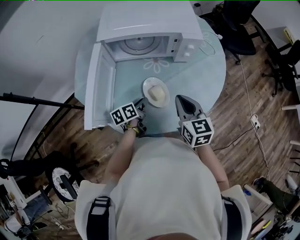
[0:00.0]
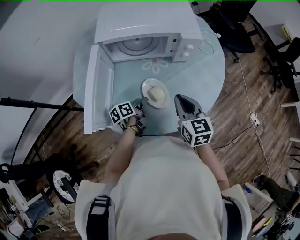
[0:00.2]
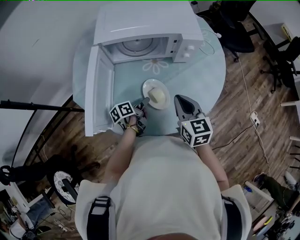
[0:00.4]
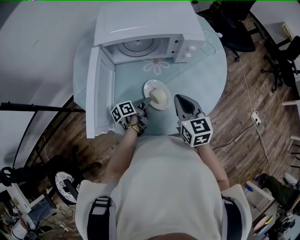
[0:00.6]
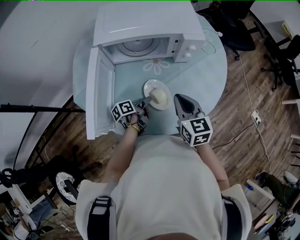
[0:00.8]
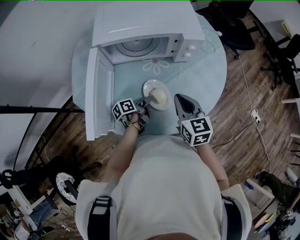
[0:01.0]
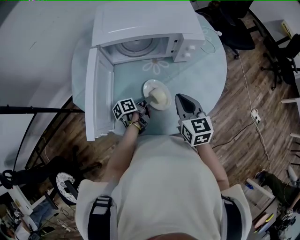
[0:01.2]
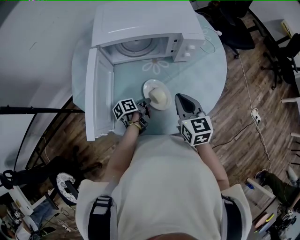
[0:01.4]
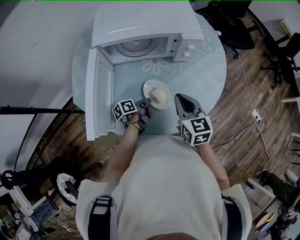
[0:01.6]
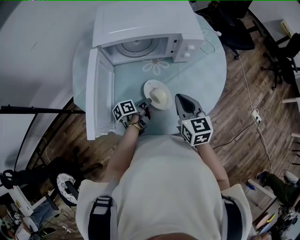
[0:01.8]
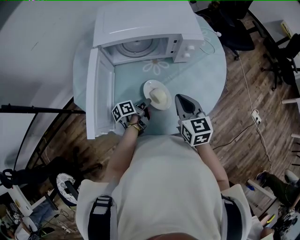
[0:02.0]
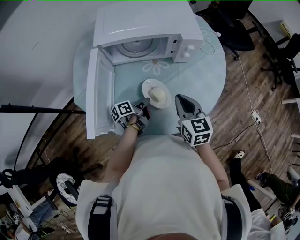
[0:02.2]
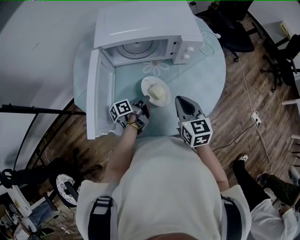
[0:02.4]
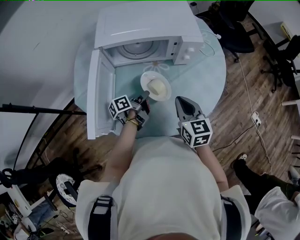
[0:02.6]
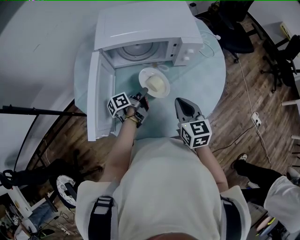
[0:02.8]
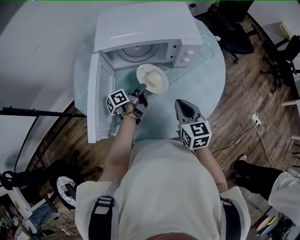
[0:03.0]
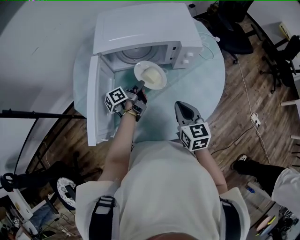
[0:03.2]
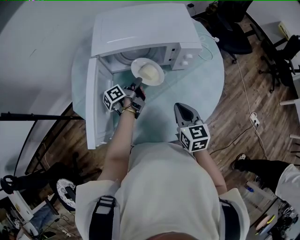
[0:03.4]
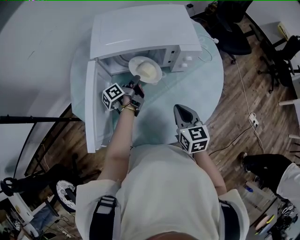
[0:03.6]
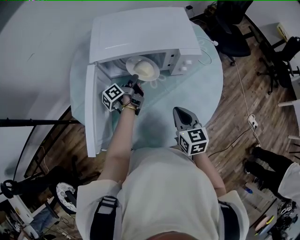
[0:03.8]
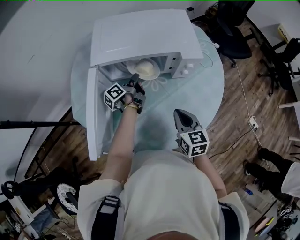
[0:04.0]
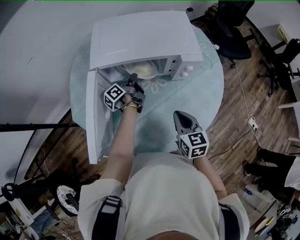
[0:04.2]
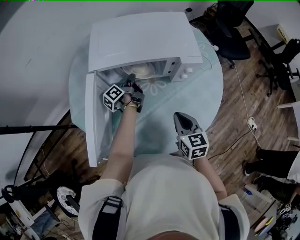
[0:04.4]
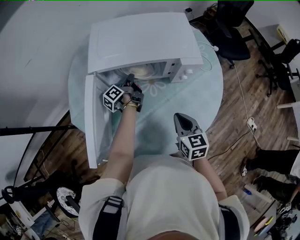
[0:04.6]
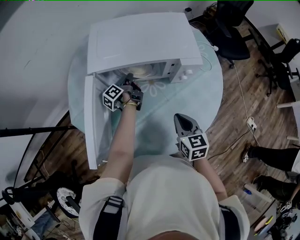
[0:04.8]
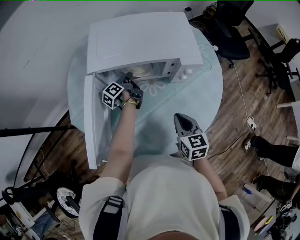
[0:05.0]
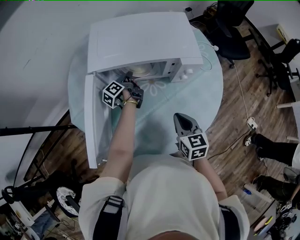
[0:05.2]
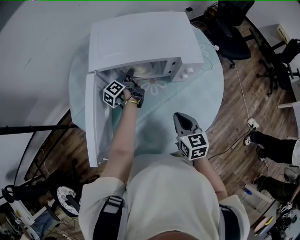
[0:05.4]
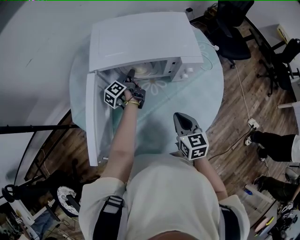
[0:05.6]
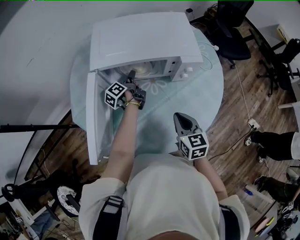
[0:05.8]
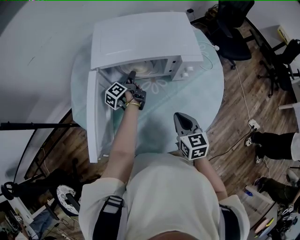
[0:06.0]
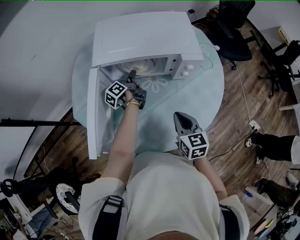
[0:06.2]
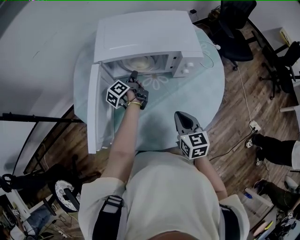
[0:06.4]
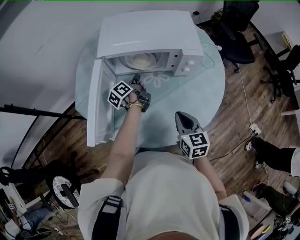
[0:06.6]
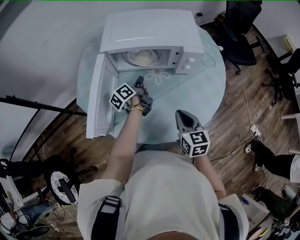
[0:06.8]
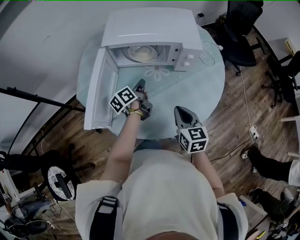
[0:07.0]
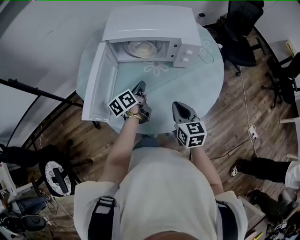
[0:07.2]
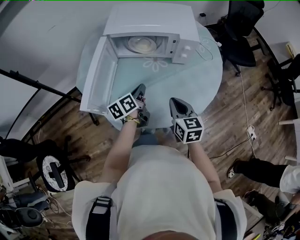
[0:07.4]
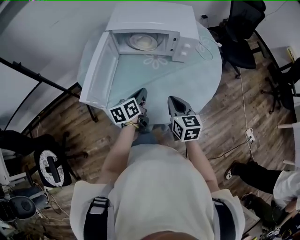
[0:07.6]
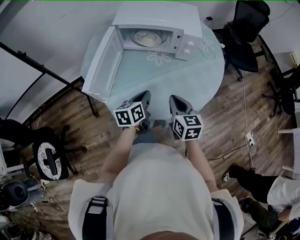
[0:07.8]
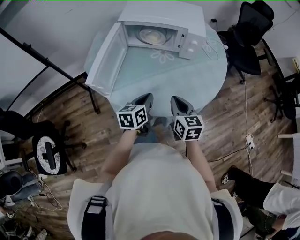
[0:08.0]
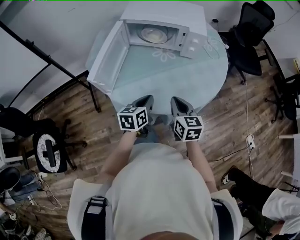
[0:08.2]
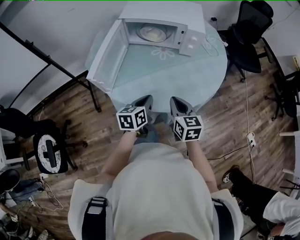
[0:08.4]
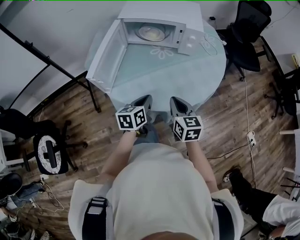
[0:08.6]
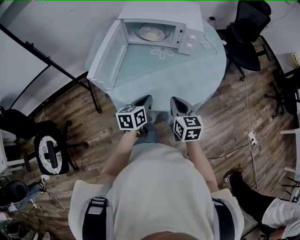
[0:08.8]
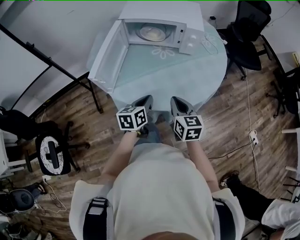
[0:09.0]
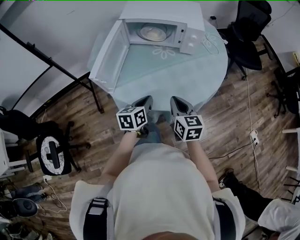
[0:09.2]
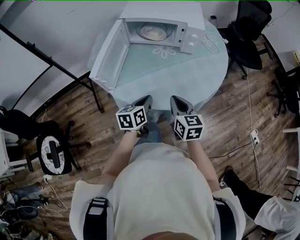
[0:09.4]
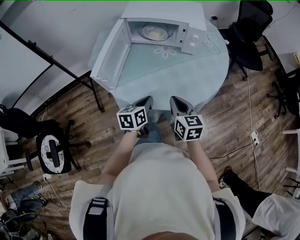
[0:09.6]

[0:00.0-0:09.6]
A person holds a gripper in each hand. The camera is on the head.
0:00.0 to 0:01.6: The left gripper changes its angle by roughly 20 degrees, and opens, then closes once more.
0:01.6 to 0:03.2: The left gripper goes roughly 15 cm forward and upward.
0:03.2 to 0:04.8: The left gripper shifts about 15 cm forward.
0:04.8 to 0:06.4: The left gripper ends up some 5 cm from where it was.
0:06.4 to 0:08.0: The left gripper goes some 35 cm backward, rotates around the line of its fingers by some 50 degrees, clockwise from behind, and closes. The right gripper heads backward, covering about 10 cm.
0:08.0 to 0:09.6: The left gripper changes place by roughly 5 cm.

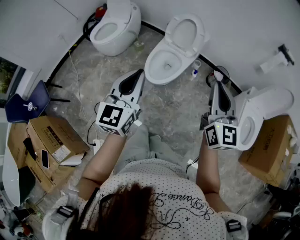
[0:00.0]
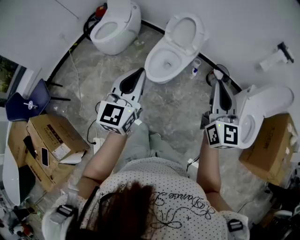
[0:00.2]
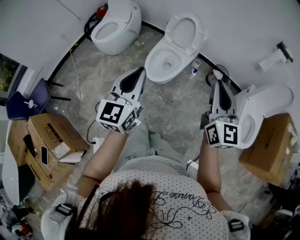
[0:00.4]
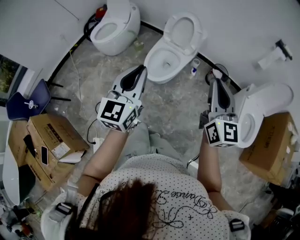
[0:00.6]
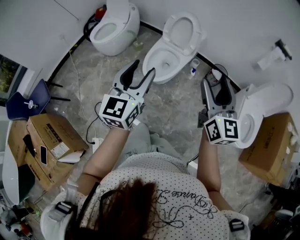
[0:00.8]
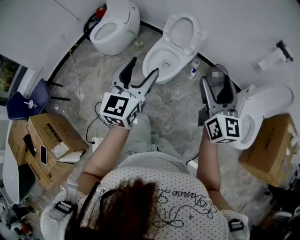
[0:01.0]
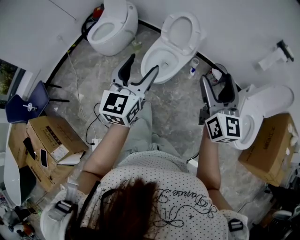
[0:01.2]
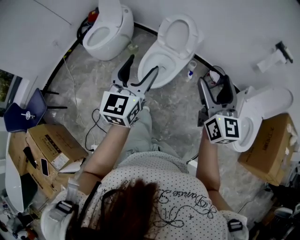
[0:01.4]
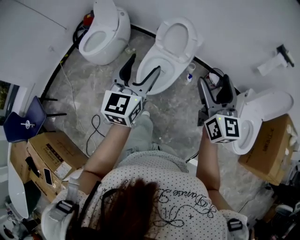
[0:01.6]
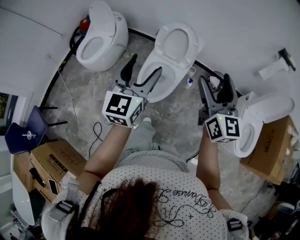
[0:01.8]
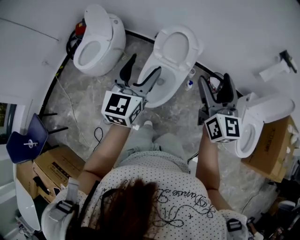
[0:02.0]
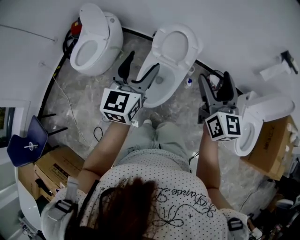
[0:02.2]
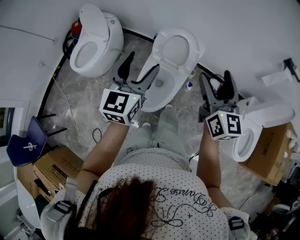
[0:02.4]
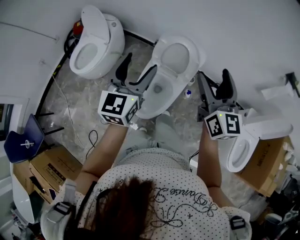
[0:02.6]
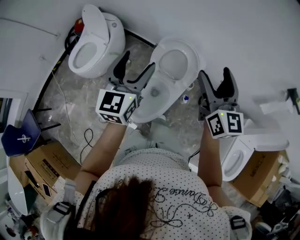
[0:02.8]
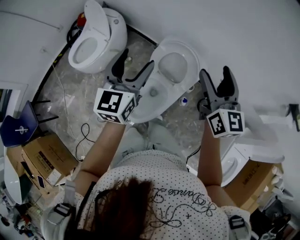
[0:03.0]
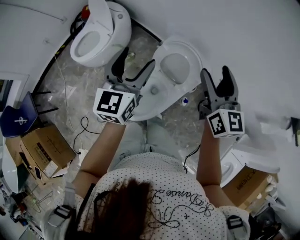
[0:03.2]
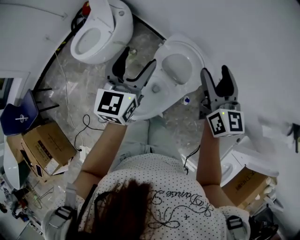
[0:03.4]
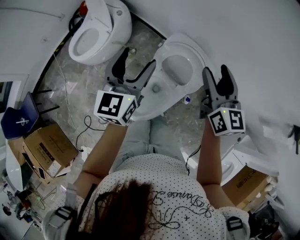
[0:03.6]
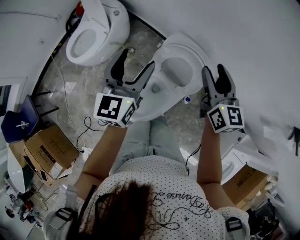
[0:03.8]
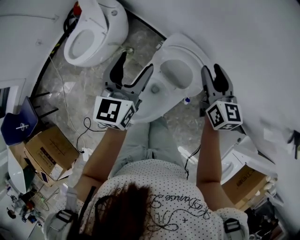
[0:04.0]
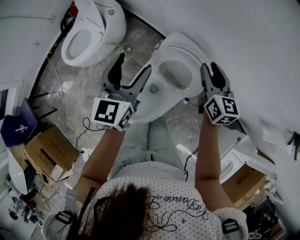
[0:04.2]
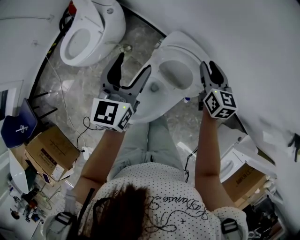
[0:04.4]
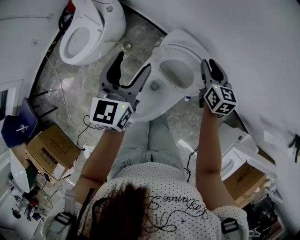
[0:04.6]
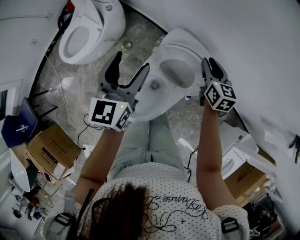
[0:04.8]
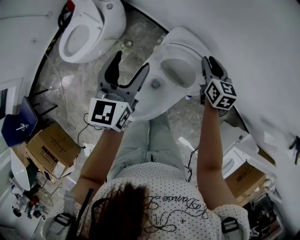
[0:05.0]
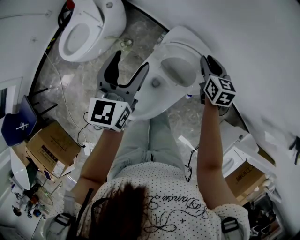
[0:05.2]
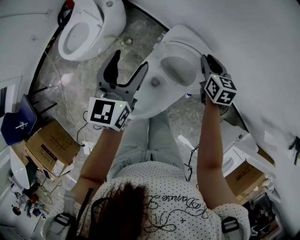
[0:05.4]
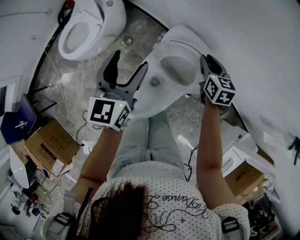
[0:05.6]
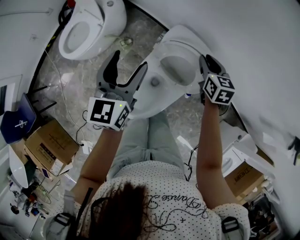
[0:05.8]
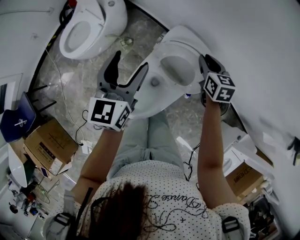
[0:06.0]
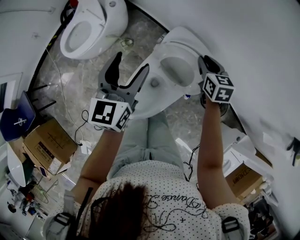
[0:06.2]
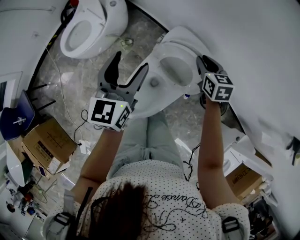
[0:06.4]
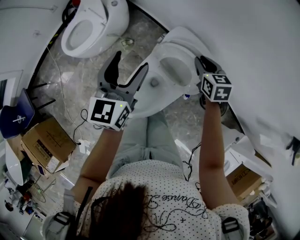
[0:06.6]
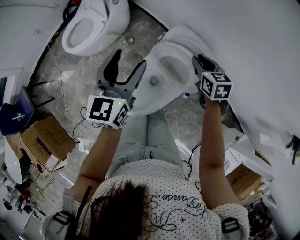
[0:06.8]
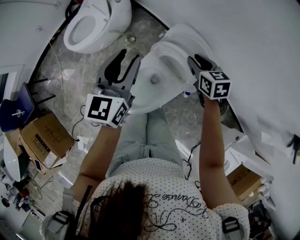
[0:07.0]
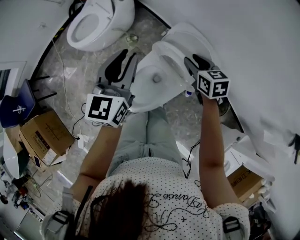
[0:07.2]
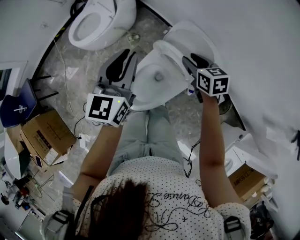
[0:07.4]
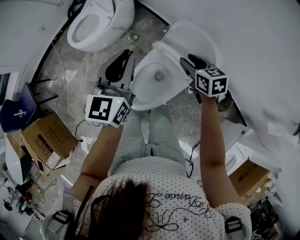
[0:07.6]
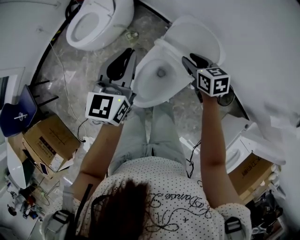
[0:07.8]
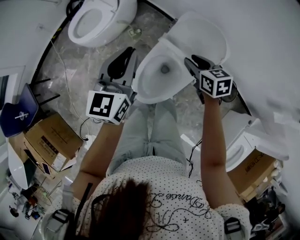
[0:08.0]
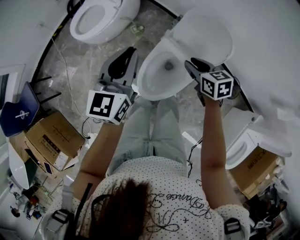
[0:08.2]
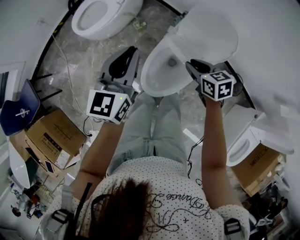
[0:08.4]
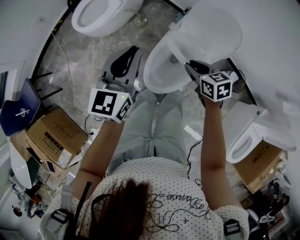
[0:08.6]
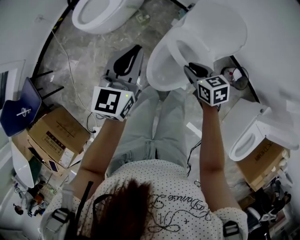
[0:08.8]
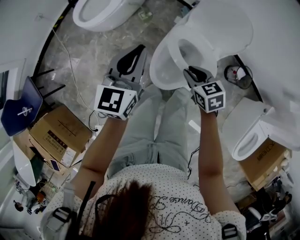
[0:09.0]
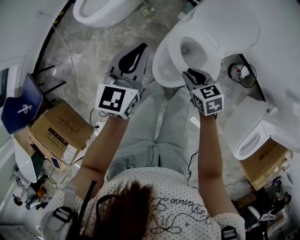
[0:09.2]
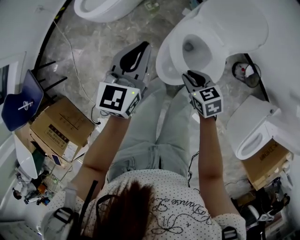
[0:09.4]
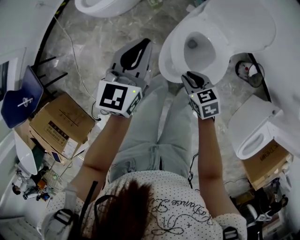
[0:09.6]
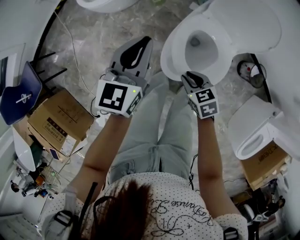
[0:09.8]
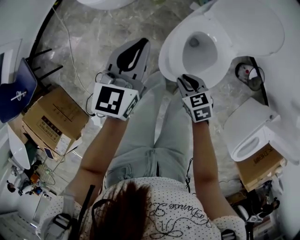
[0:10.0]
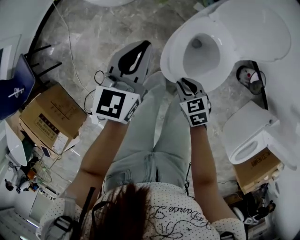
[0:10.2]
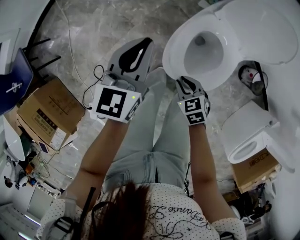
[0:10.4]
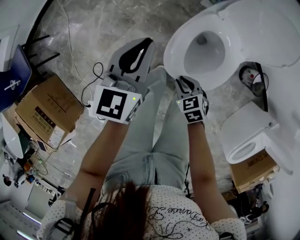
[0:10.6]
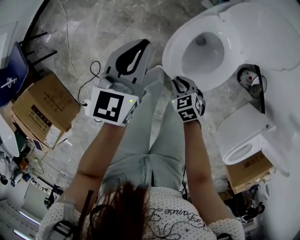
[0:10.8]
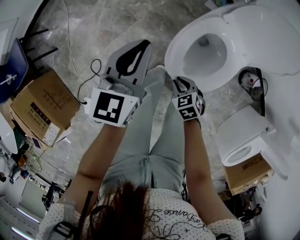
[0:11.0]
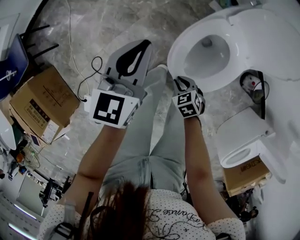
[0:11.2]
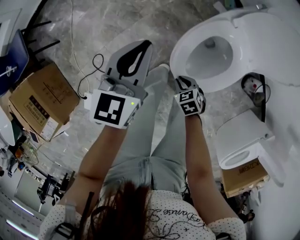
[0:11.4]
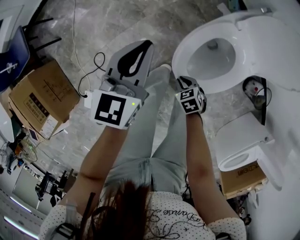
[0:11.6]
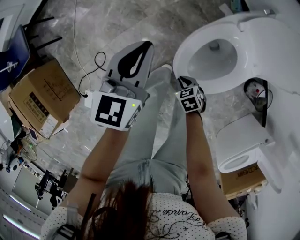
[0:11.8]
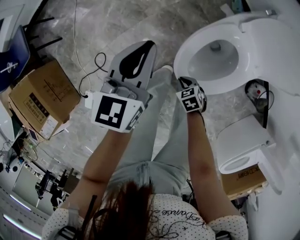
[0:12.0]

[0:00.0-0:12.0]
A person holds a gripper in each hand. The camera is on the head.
0:00.0 to 0:01.6: Both grippers travel together forward, about 15 cm. The right gripper opens. The left gripper opens up.
0:01.6 to 0:03.0: The grippers both shift forward by roughly 35 cm.
0:03.0 to 0:04.4: The left gripper goes roughly 15 cm forward and downward. Meanwhile the right gripper shifts approximately 30 cm downward and forward, rotates roughly 20 degrees, and closes.
0:04.4 to 0:06.0: The right gripper moves downward, roughly 5 cm.
0:06.0 to 0:07.6: The left gripper shifts about 10 cm backward and to the left, and closes its fingers. The right gripper moves to the left and backward, approximately 15 cm.
0:07.6 to 0:09.0: The left gripper heads to the left and downward, covering roughly 15 cm; the right gripper is displaced to the left, backward and downward by approximately 25 cm.
0:09.0 to 0:10.4: The right gripper heads downward, to the left and backward, covering about 20 cm. Meanwhile the left gripper travels downward and to the left by some 15 cm.
0:10.4 to 0:12.0: The left gripper goes some 10 cm downward and to the left. The right gripper goes some 15 cm downward.

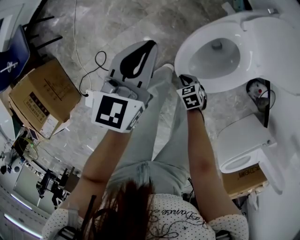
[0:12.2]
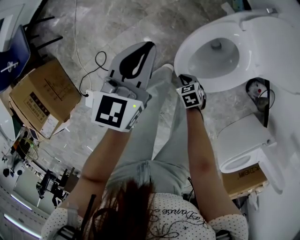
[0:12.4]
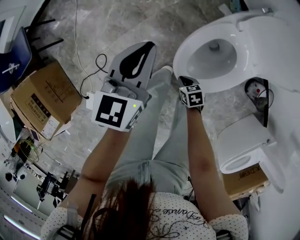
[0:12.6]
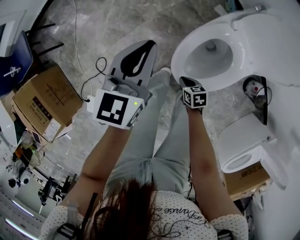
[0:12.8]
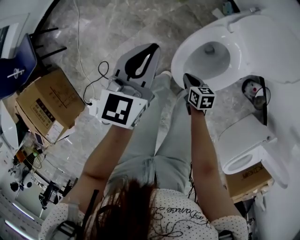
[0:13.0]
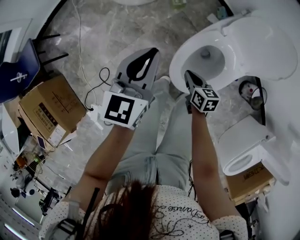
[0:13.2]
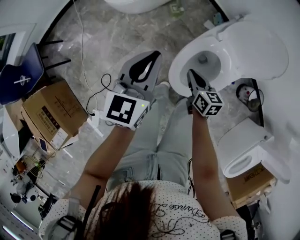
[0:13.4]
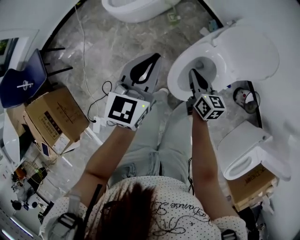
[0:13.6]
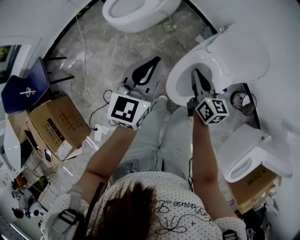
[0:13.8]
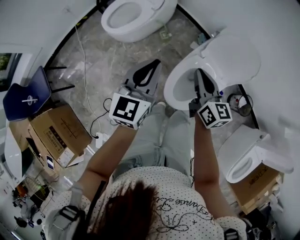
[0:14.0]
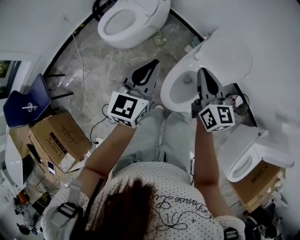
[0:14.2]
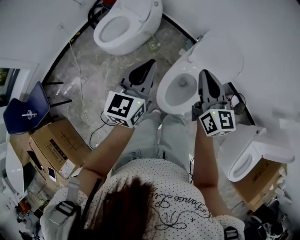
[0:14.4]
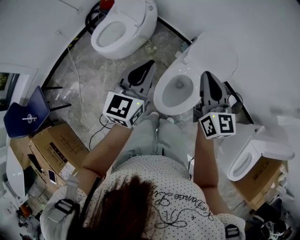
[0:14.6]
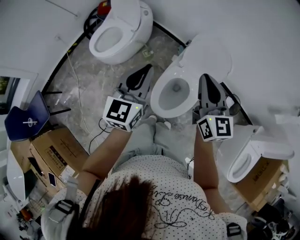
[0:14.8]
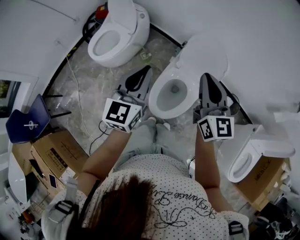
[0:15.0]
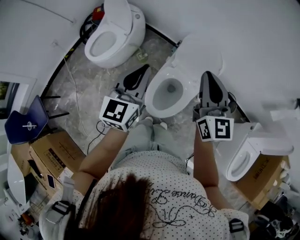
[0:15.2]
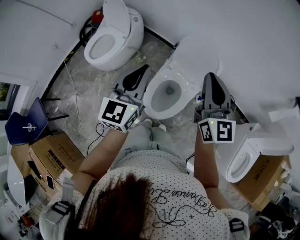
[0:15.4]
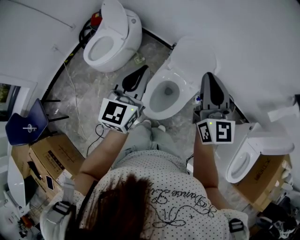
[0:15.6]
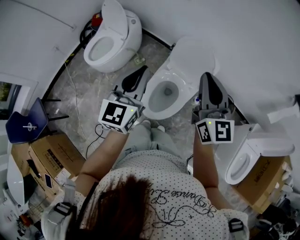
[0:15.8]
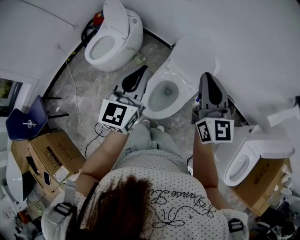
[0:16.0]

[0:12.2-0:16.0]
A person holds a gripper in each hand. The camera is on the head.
0:12.2 to 0:13.4: The left gripper moves upward, approximately 10 cm. Meanwhile the right gripper travels upward and forward by about 25 cm, and angles its fingers upward, by roughly 30 degrees.
0:13.4 to 0:14.8: The left gripper goes about 20 cm upward and to the right. The right gripper travels upward by roughly 40 cm, and tips its fingers upward by some 30 degrees.
0:14.8 to 0:16.0: The left gripper goes roughly 10 cm to the right. The right gripper moves to the right and upward, roughly 15 cm.
